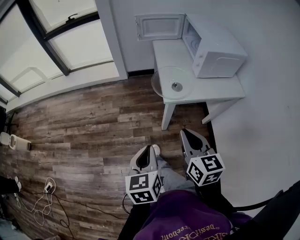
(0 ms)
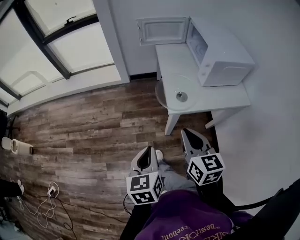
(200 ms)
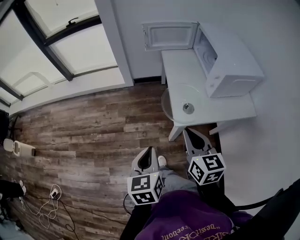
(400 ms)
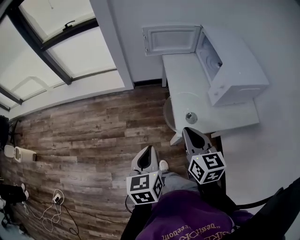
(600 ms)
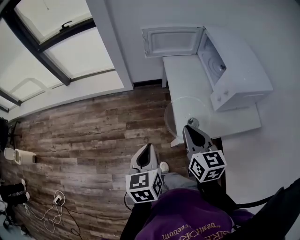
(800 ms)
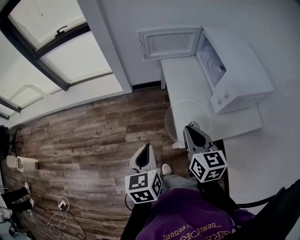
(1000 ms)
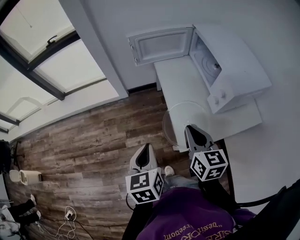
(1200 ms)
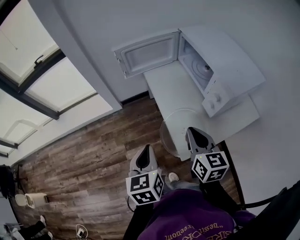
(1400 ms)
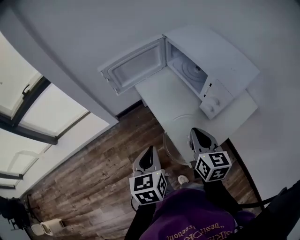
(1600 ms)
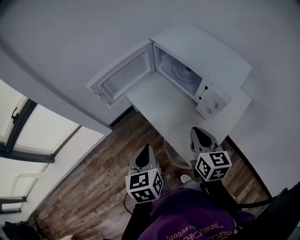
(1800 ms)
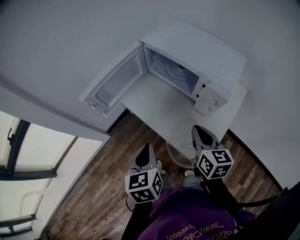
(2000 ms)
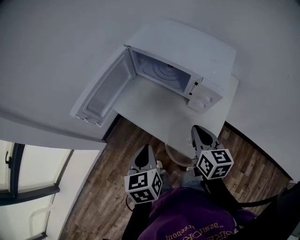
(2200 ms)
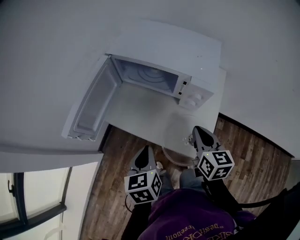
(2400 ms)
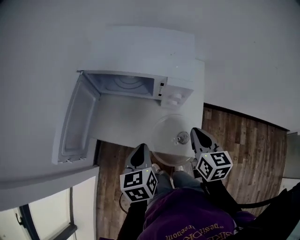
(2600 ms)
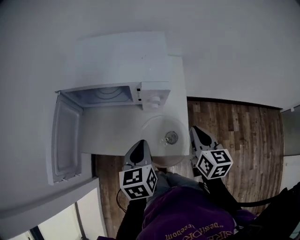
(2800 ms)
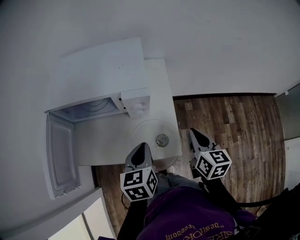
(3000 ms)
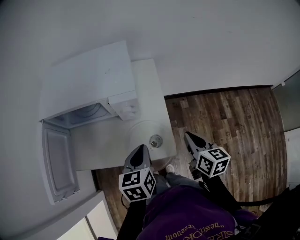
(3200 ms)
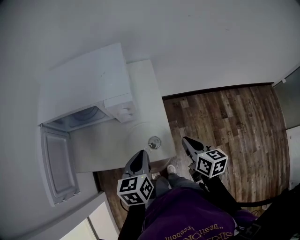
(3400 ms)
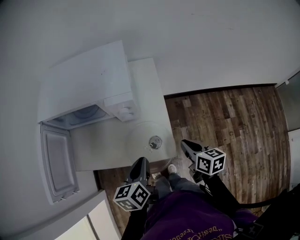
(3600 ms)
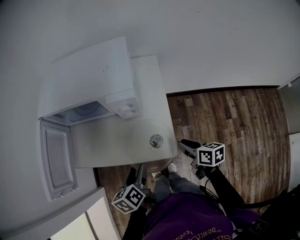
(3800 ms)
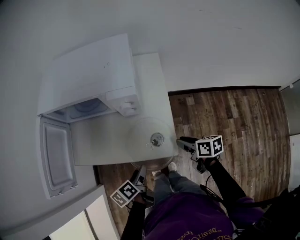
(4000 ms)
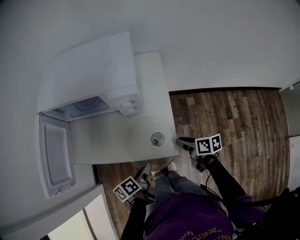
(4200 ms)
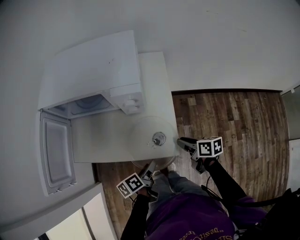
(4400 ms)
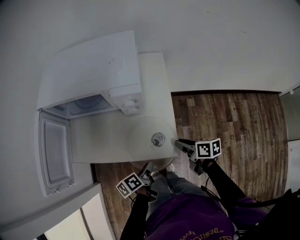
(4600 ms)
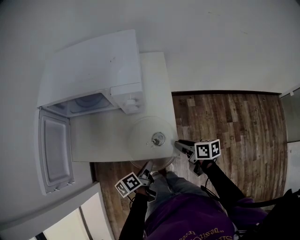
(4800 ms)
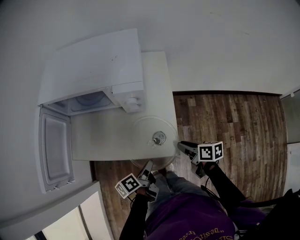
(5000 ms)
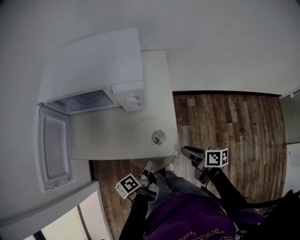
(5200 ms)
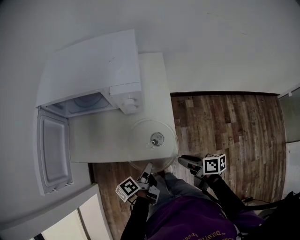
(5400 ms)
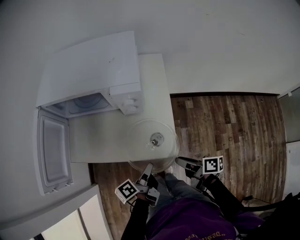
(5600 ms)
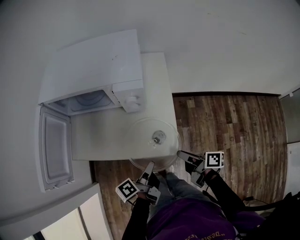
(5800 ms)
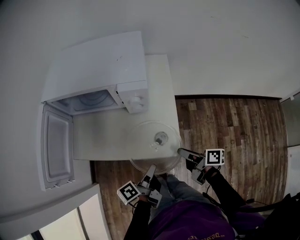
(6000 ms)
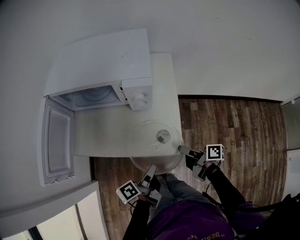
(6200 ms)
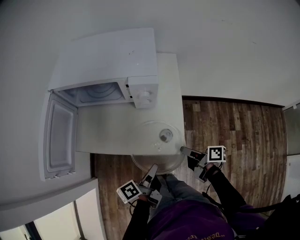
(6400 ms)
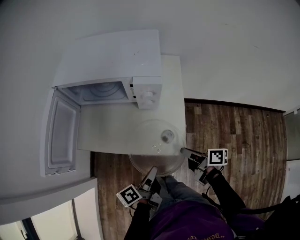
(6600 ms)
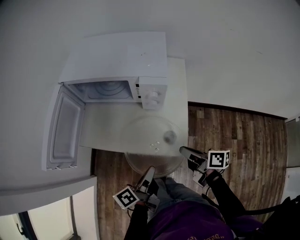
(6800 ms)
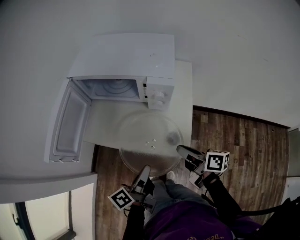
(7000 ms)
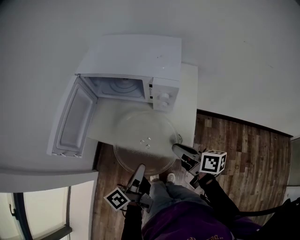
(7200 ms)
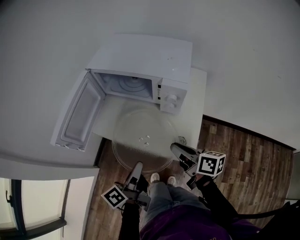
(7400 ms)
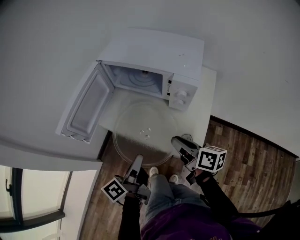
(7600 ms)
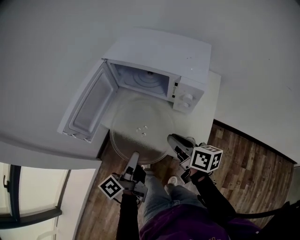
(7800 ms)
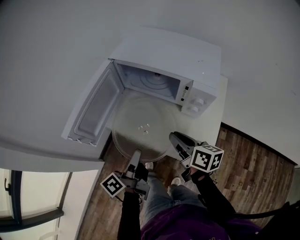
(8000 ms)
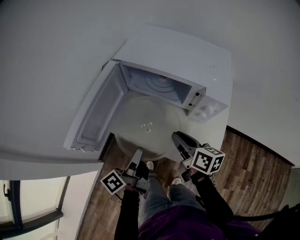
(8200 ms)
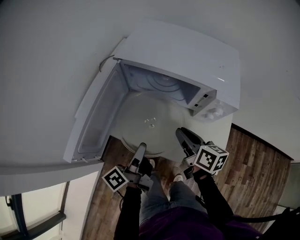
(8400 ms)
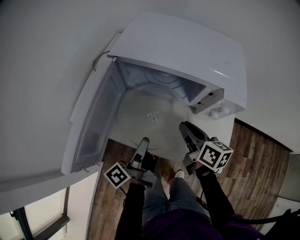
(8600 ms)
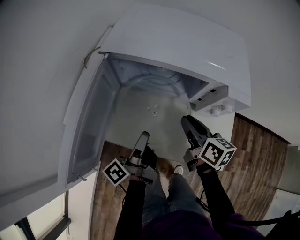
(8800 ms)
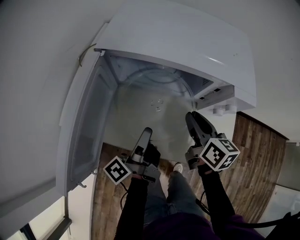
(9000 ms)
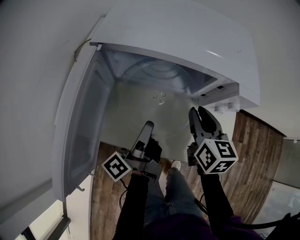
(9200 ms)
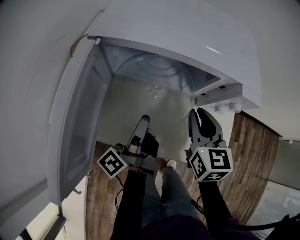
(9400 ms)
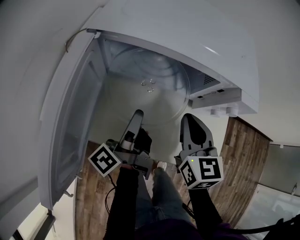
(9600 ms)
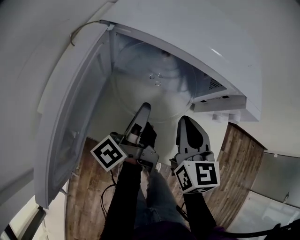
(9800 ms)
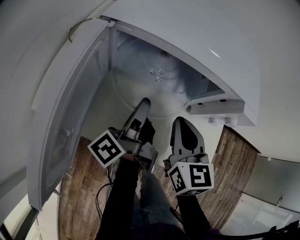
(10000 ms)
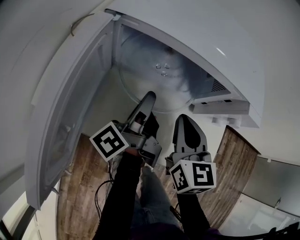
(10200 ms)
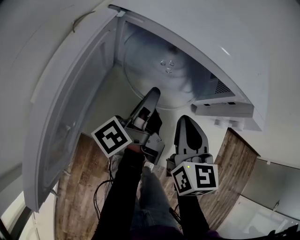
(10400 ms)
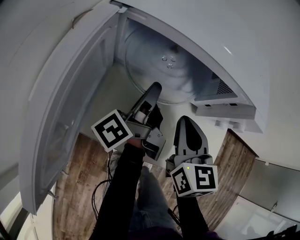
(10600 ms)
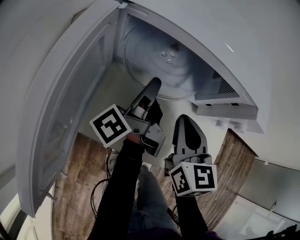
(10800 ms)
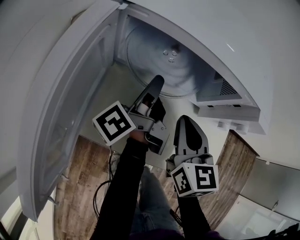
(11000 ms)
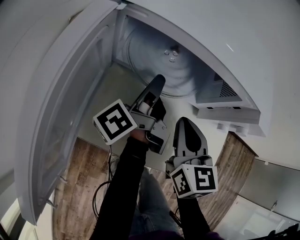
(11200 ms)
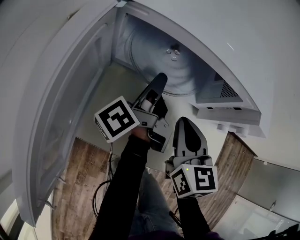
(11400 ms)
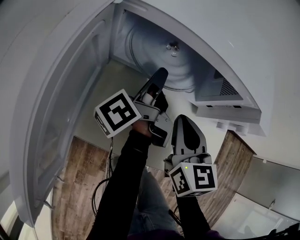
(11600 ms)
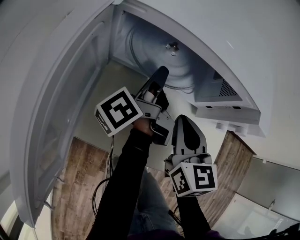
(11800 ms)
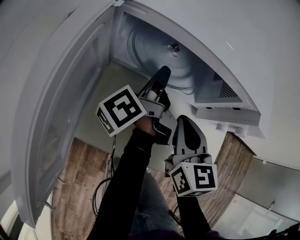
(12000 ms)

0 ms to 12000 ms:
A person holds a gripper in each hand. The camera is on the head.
0 ms to 1600 ms: The left gripper moves some 40 cm, and rotates some 20 degrees; the right gripper moves approximately 35 cm, and turns by about 30 degrees.
1600 ms to 3000 ms: The right gripper moves some 15 cm, and turns by about 60 degrees, while the left gripper ends up some 15 cm from where it was, and turns by approximately 70 degrees.
3000 ms to 4400 ms: The left gripper moves downward and backward, approximately 20 cm, twists some 50 degrees counterclockwise, seen from behind, and opens. The right gripper is displaced downward by some 20 cm, rotates approximately 40 degrees, and opens.
4400 ms to 6000 ms: The right gripper changes its angle by some 30 degrees. Meanwhile the left gripper moves upward, some 5 cm, changes its angle by some 30 degrees, and closes its fingers.
6000 ms to 7600 ms: The left gripper moves to the left and upward, roughly 15 cm, and swivels roughly 30 degrees. The right gripper is displaced to the left, upward and forward by about 20 cm, and turns by roughly 30 degrees.
7600 ms to 9000 ms: Both grippers travel together forward, approximately 20 cm. The left gripper swivels roughly 20 degrees; the right gripper rotates roughly 30 degrees.
9000 ms to 10400 ms: The left gripper travels forward by about 10 cm, while the right gripper shifts roughly 5 cm to the left, turns by some 30 degrees, and closes up.
10400 ms to 12000 ms: The left gripper is displaced forward by about 5 cm.

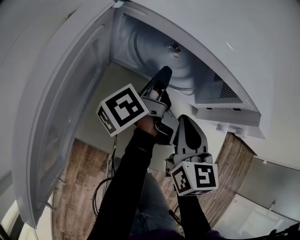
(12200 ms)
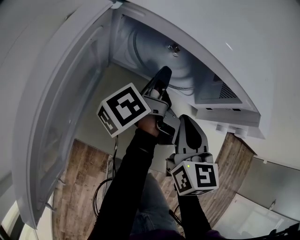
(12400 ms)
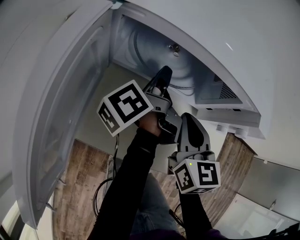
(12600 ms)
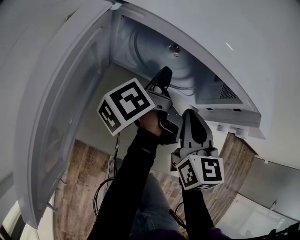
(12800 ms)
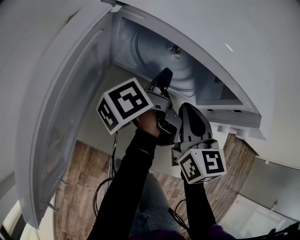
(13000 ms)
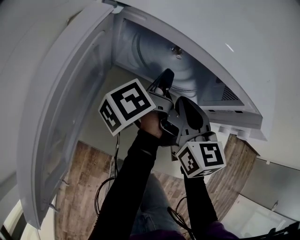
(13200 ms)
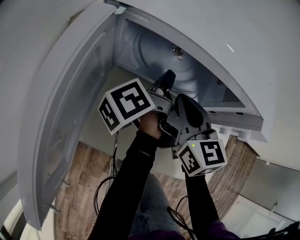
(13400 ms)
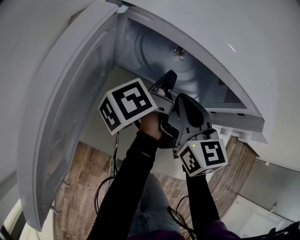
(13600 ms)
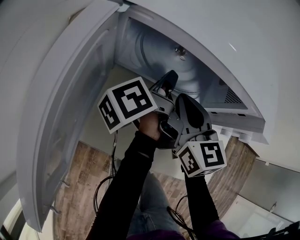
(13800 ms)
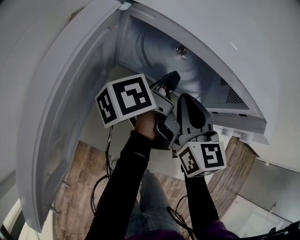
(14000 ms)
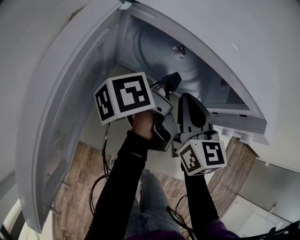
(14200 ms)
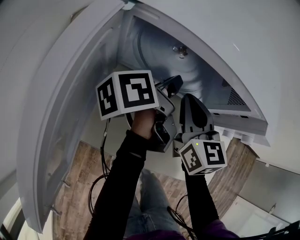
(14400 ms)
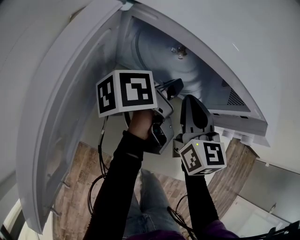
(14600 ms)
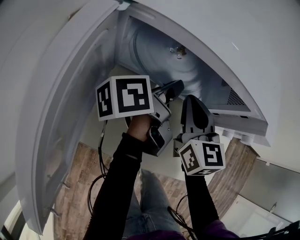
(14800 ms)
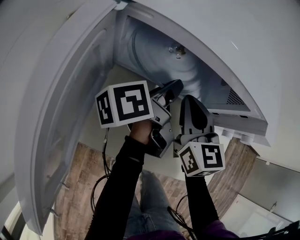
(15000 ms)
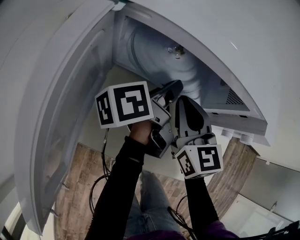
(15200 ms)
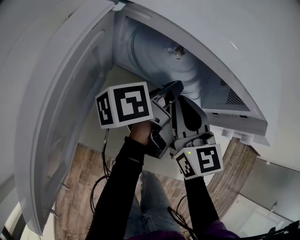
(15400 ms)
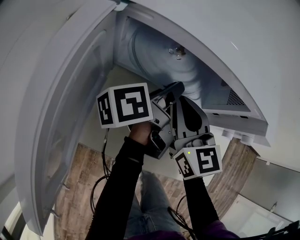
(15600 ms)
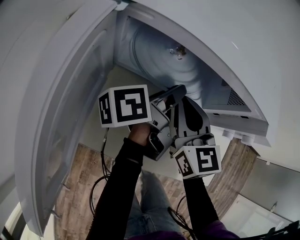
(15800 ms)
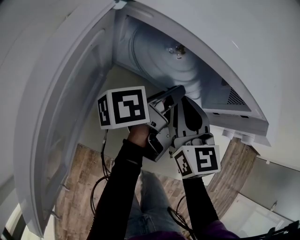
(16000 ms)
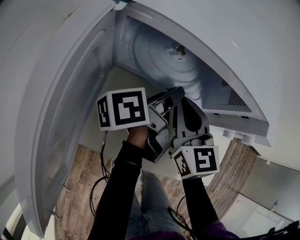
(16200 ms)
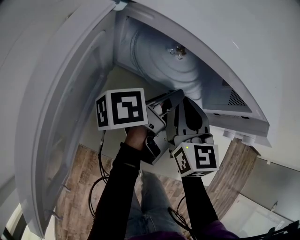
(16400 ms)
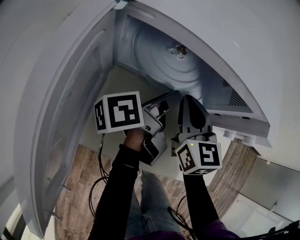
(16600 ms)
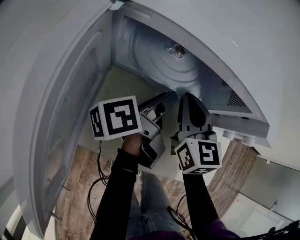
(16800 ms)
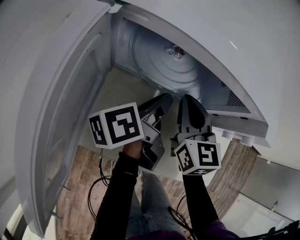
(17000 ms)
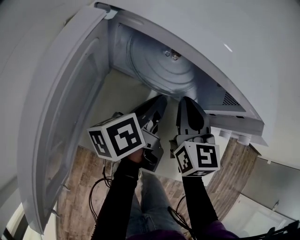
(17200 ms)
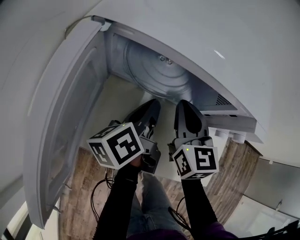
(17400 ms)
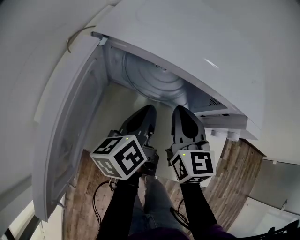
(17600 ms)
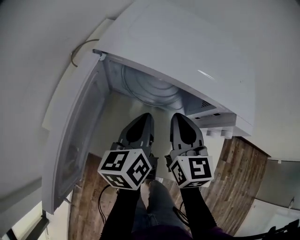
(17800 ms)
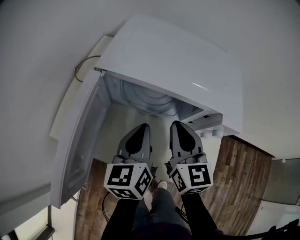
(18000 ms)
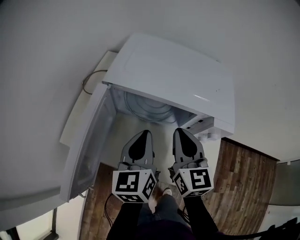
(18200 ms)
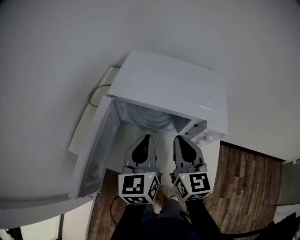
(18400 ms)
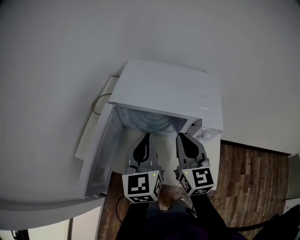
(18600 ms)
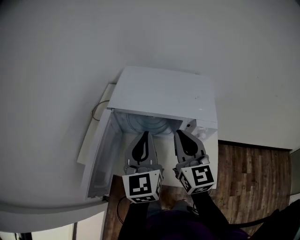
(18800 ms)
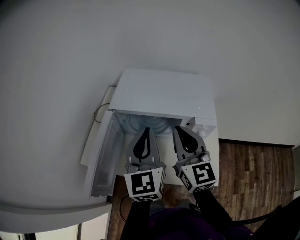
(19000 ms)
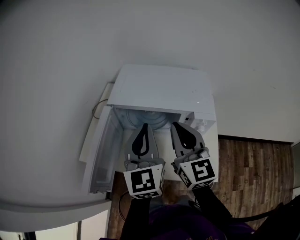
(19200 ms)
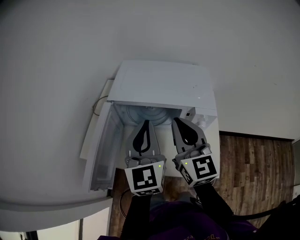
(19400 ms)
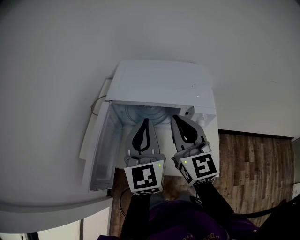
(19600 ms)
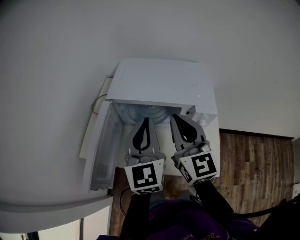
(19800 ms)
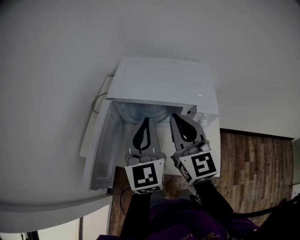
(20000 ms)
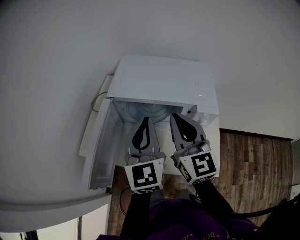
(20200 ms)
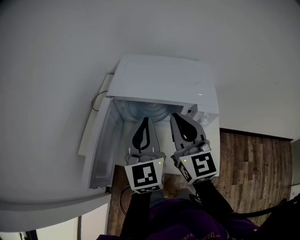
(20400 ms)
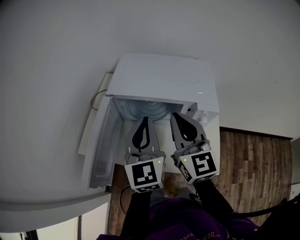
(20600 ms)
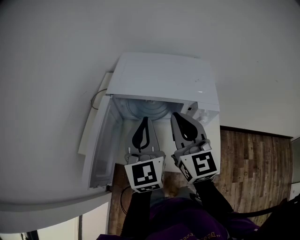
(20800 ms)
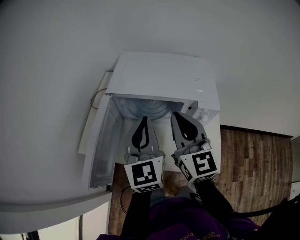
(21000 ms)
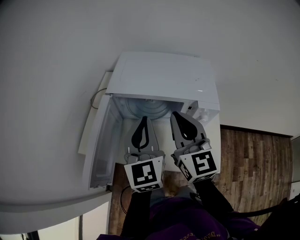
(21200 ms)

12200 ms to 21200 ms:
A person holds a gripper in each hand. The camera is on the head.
12200 ms to 13800 ms: The right gripper shifts roughly 5 cm forward.
15200 ms to 16600 ms: The grippers stay close to where they were, moving slightly.
16600 ms to 18200 ms: The two grippers go about 15 cm upward and backward. The left gripper rolls clockwise, seen from behind, by some 60 degrees, and closes.
18200 ms to 19800 ms: The grippers both shift upward by some 10 cm. The left gripper changes its angle by some 30 degrees.
19800 ms to 21200 ms: The grippers make only small movements.

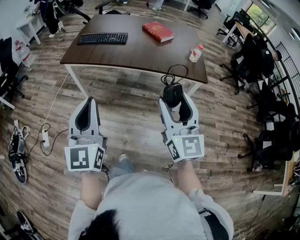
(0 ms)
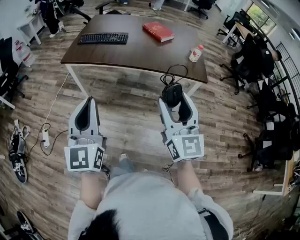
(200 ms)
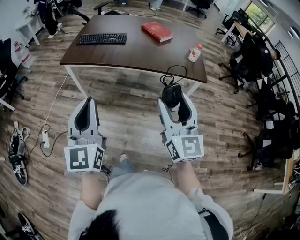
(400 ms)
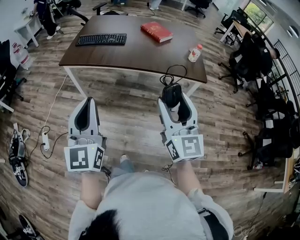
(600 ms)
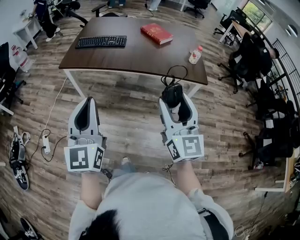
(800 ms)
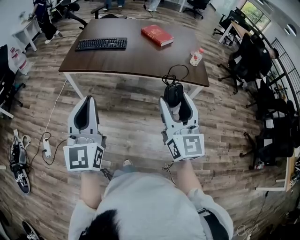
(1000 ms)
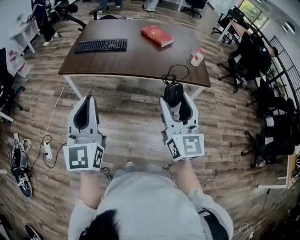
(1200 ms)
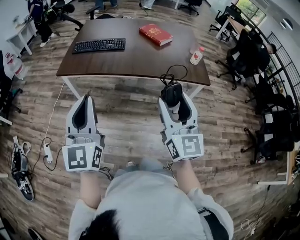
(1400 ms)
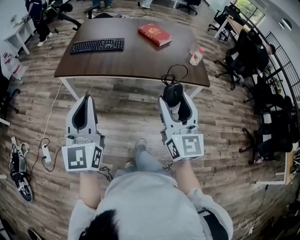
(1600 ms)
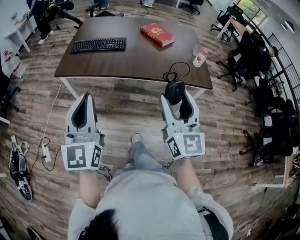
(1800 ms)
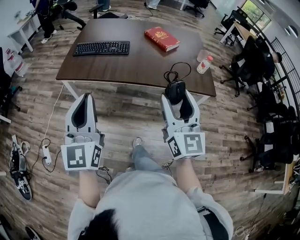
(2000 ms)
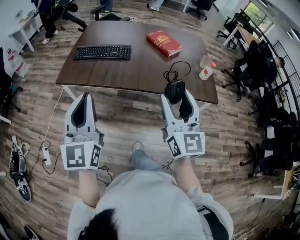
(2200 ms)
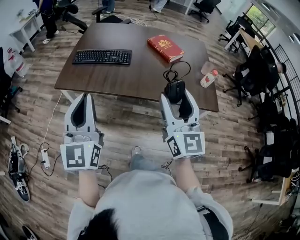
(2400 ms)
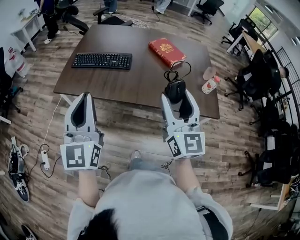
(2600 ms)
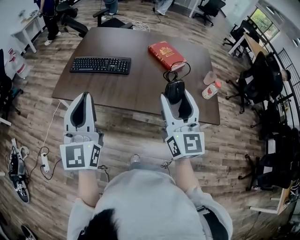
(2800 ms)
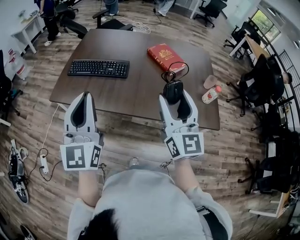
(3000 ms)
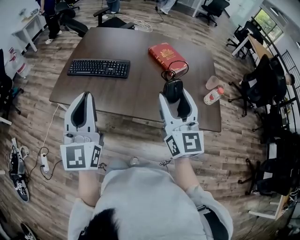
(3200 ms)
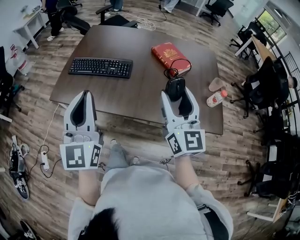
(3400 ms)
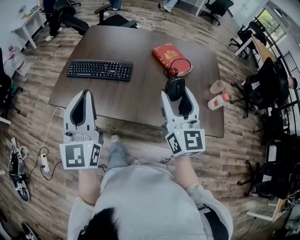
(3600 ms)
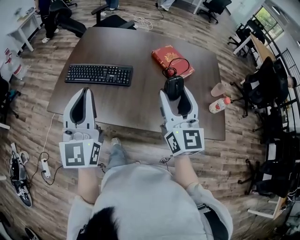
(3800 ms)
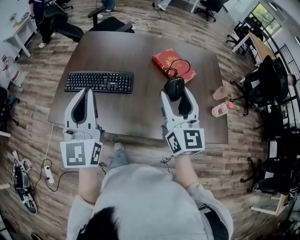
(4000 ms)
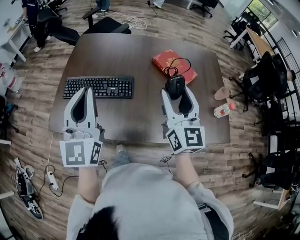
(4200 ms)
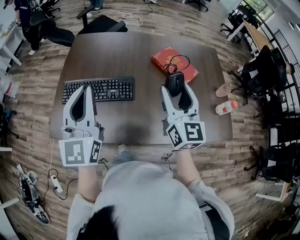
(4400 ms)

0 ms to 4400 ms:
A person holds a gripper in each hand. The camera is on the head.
0 ms to 1400 ms: Both grippers travel together forward and to the left, approximately 10 cm.
1400 ms to 3000 ms: Both grippers move forward, roughly 30 cm.
3000 ms to 4400 ms: Both grippers move forward, some 25 cm.
